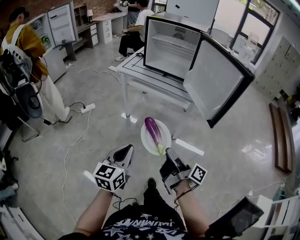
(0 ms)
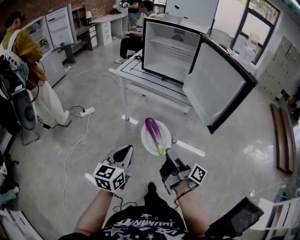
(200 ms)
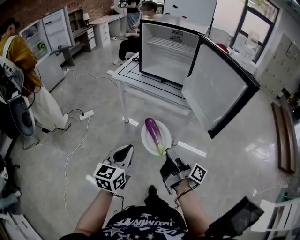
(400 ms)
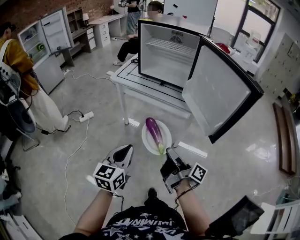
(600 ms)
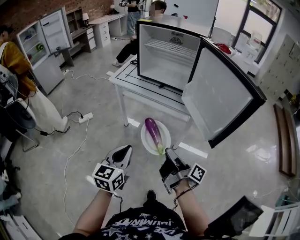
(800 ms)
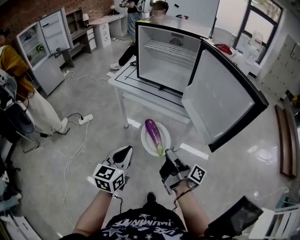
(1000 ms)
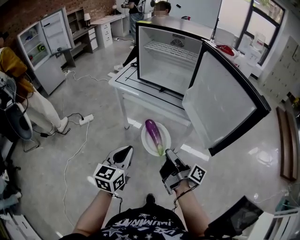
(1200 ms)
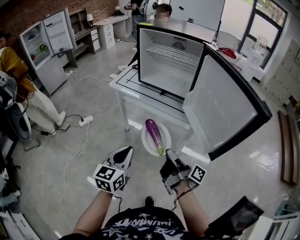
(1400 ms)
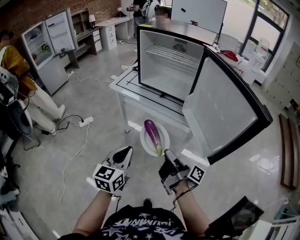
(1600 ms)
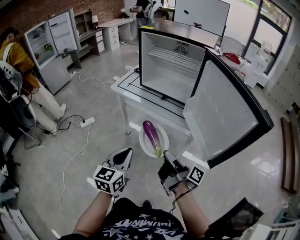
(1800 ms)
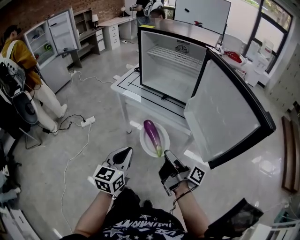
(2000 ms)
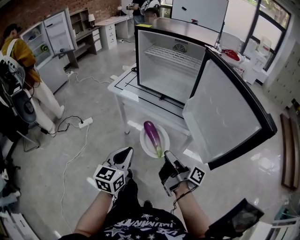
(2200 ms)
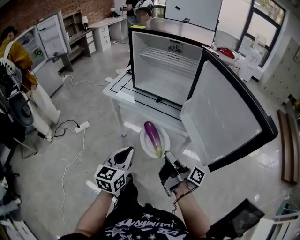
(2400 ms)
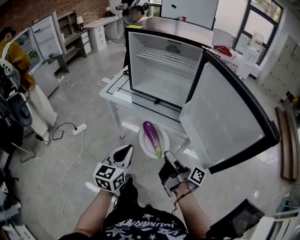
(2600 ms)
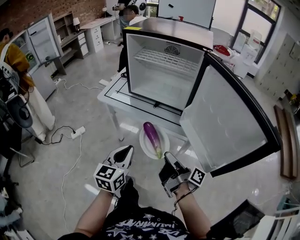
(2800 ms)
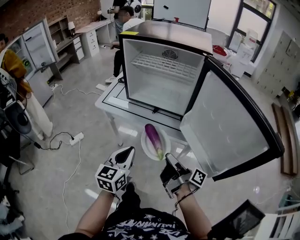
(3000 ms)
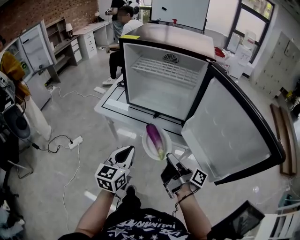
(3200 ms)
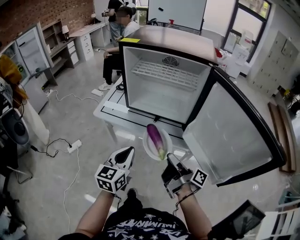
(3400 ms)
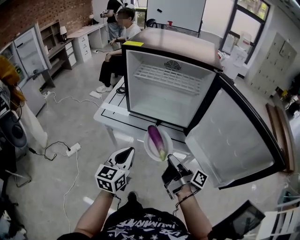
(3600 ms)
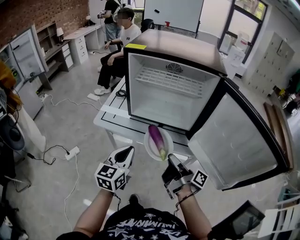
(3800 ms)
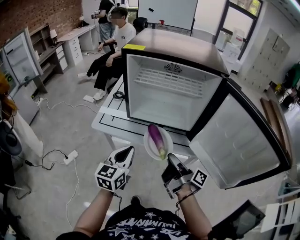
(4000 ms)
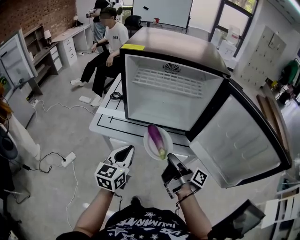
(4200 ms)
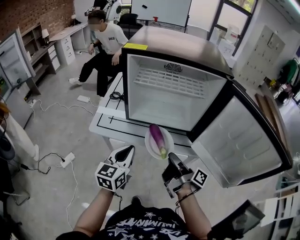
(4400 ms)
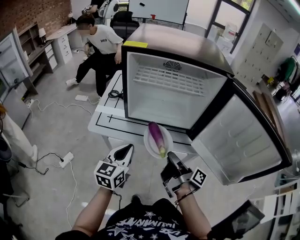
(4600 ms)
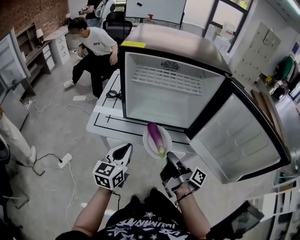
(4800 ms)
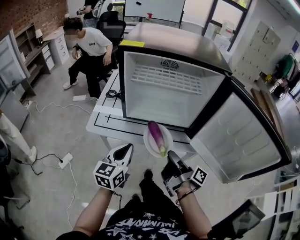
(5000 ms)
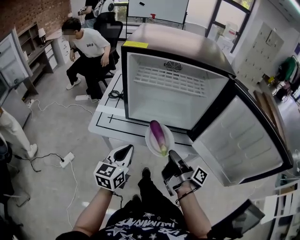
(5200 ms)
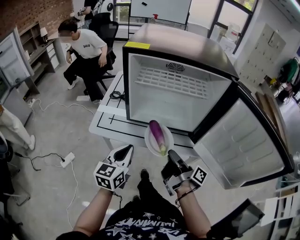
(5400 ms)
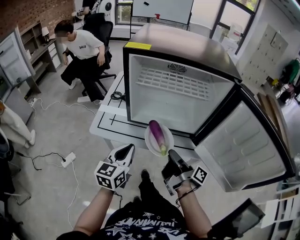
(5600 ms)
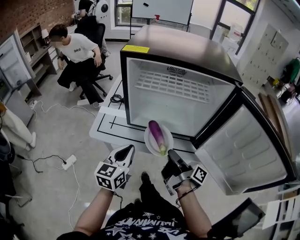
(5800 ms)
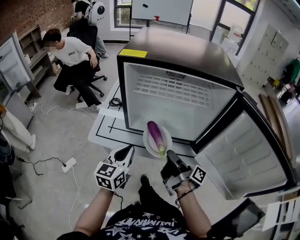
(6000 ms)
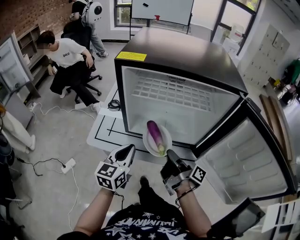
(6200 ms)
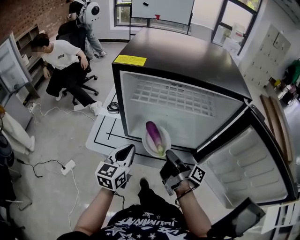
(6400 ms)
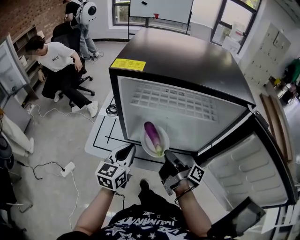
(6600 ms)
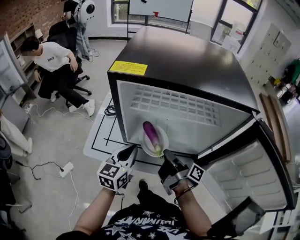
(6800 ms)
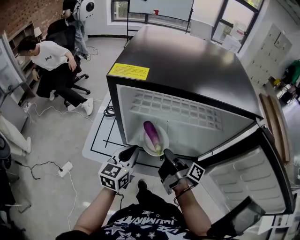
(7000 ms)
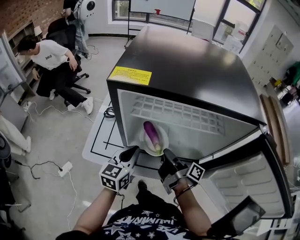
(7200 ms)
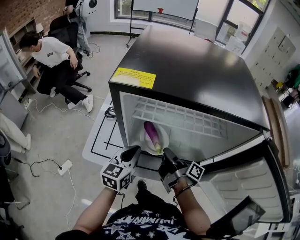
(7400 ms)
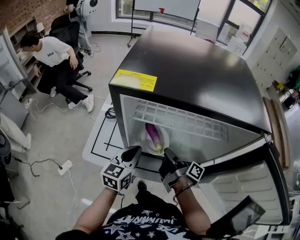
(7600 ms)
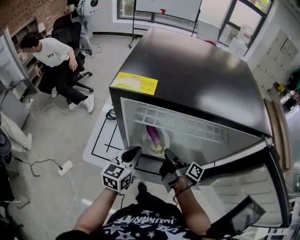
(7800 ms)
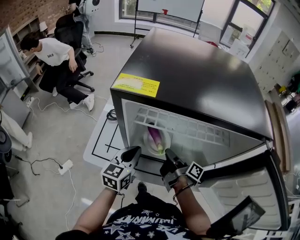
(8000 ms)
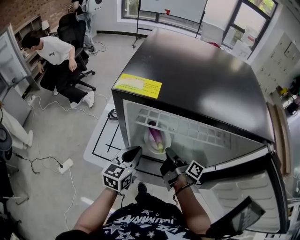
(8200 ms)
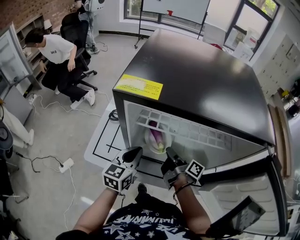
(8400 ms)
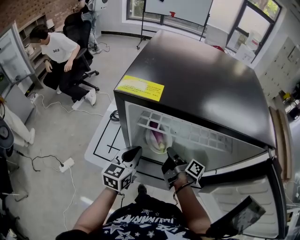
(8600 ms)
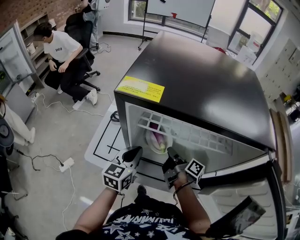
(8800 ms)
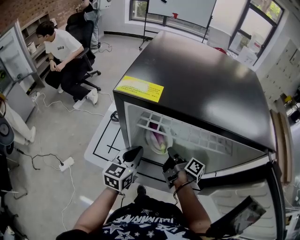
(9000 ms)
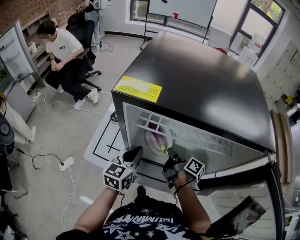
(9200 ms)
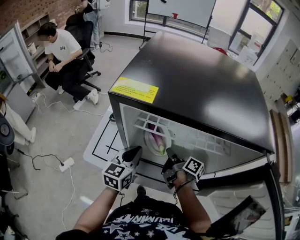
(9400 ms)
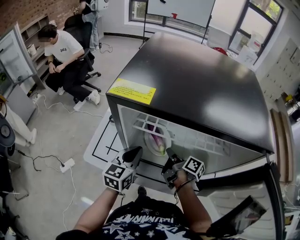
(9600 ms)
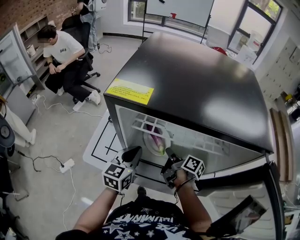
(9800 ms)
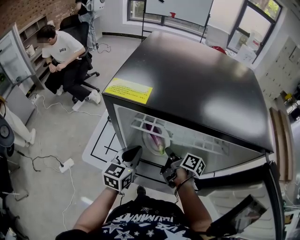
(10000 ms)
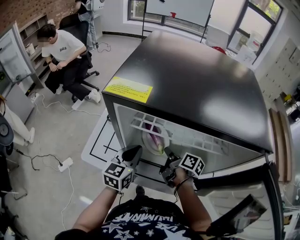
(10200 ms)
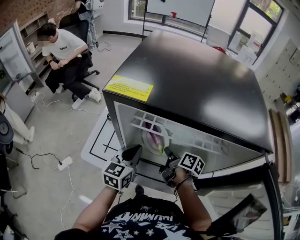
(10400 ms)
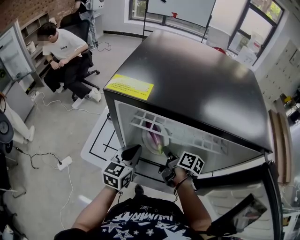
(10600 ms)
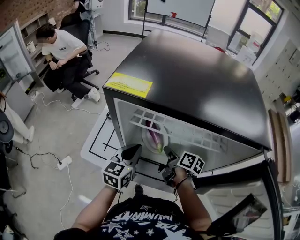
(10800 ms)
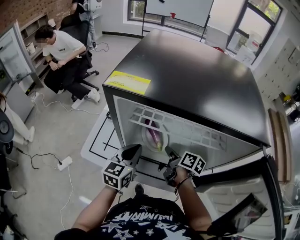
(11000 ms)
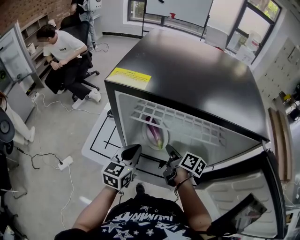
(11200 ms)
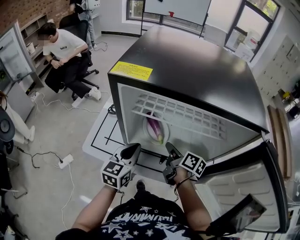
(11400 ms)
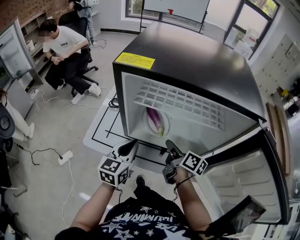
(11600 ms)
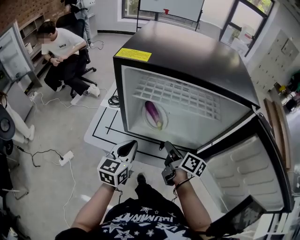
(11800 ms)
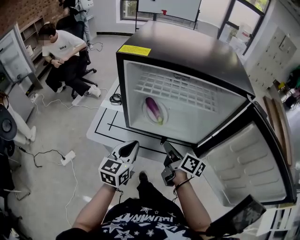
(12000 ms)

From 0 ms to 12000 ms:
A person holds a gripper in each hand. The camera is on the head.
From 0 ms to 1600 ms: The left gripper ends up approximately 25 cm from where it was.
From 1600 ms to 3000 ms: The left gripper ends up roughly 15 cm from where it was.
From 3000 ms to 4400 ms: The left gripper shifts by some 20 cm.
From 4400 ms to 6000 ms: The left gripper ends up some 5 cm from where it was.
From 6000 ms to 7600 ms: The left gripper changes place by about 15 cm.
From 10400 ms to 12000 ms: The left gripper moves approximately 15 cm.

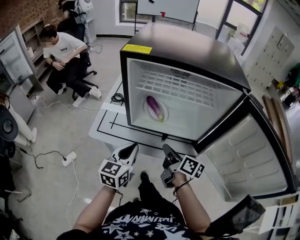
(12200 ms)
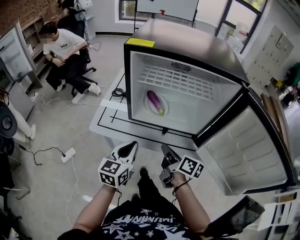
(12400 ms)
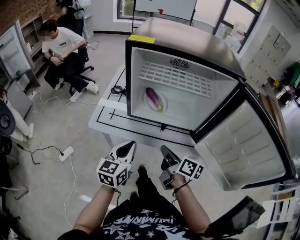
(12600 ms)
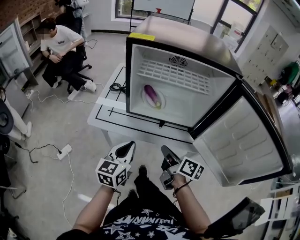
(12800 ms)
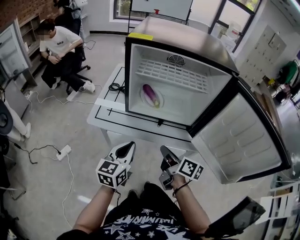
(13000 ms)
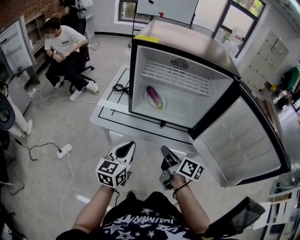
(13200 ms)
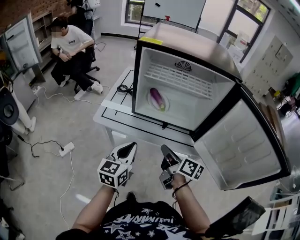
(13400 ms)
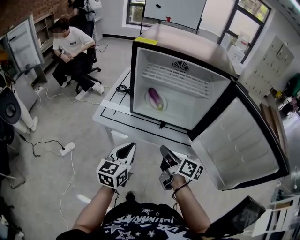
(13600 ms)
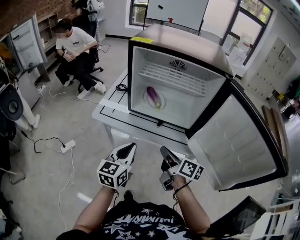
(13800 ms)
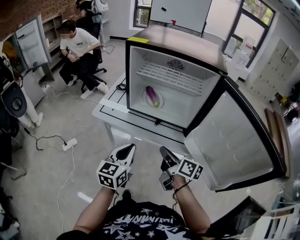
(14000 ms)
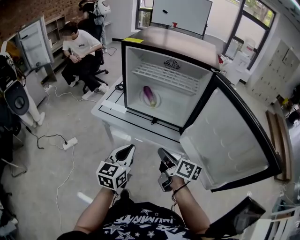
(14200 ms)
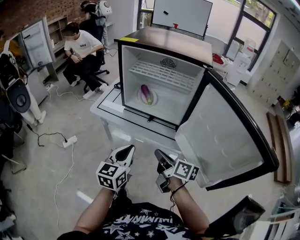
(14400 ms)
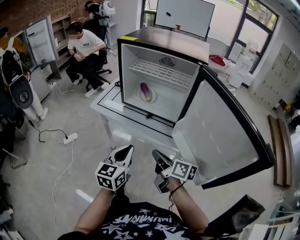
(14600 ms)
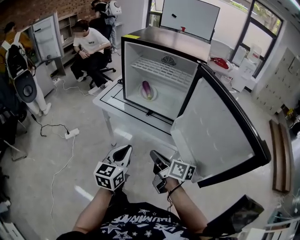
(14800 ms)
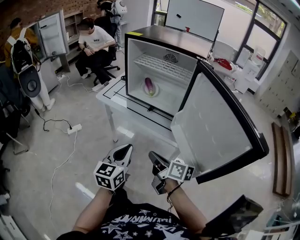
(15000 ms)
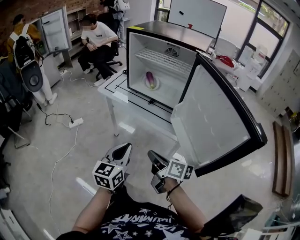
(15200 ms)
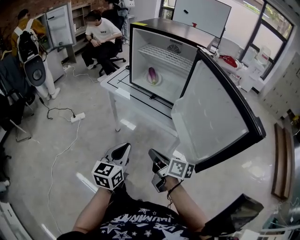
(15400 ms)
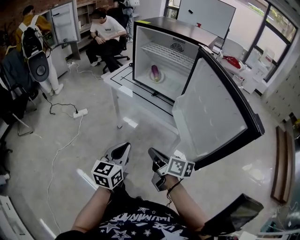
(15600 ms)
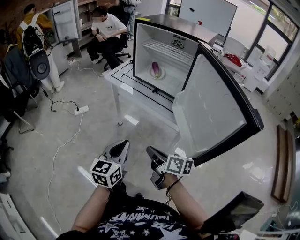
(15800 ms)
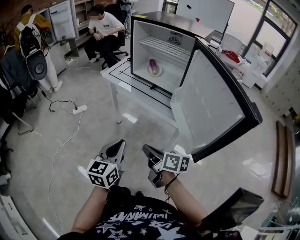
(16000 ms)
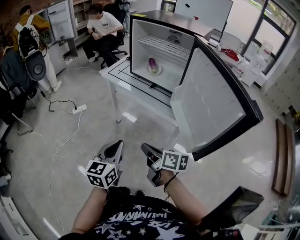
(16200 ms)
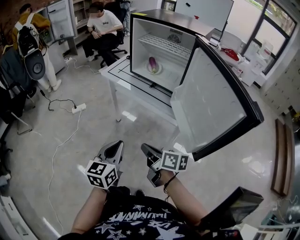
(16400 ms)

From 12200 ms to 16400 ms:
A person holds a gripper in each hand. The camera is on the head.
From 12200 ms to 13600 ms: The left gripper ends up approximately 10 cm from where it was.
From 13600 ms to 15000 ms: The left gripper moves approximately 25 cm.
From 15000 ms to 16400 ms: The left gripper shifts by roughly 15 cm.

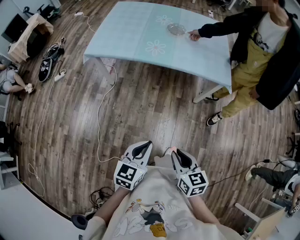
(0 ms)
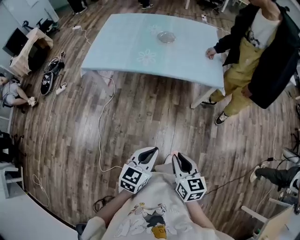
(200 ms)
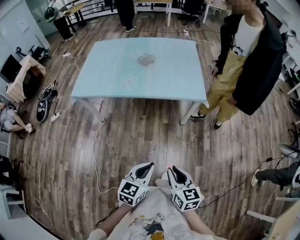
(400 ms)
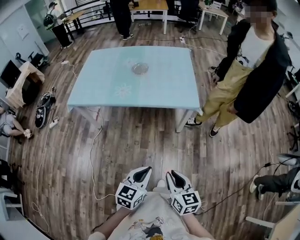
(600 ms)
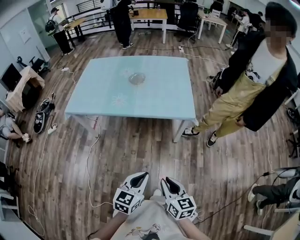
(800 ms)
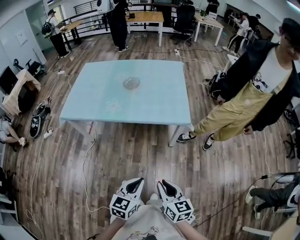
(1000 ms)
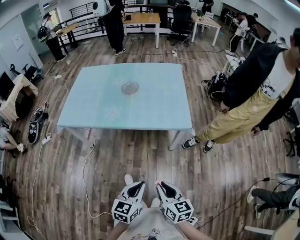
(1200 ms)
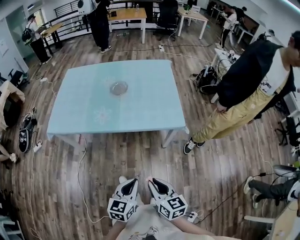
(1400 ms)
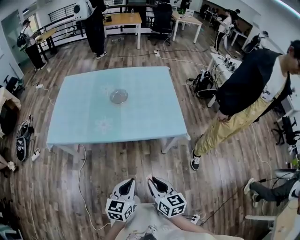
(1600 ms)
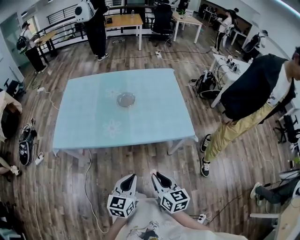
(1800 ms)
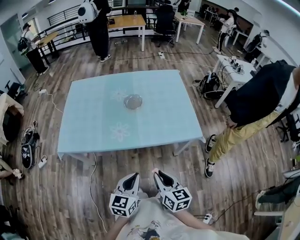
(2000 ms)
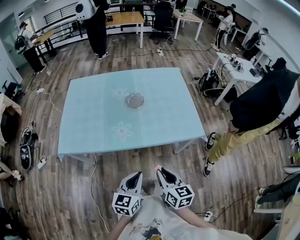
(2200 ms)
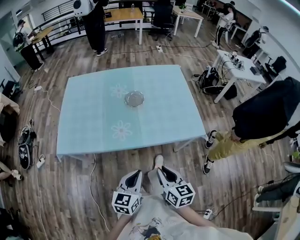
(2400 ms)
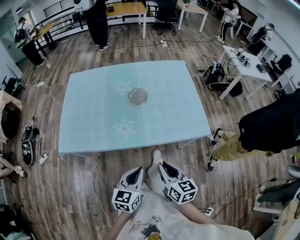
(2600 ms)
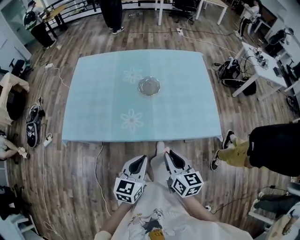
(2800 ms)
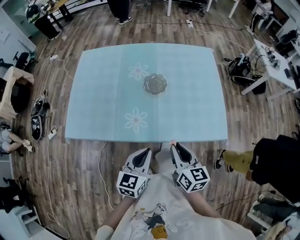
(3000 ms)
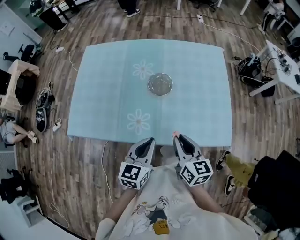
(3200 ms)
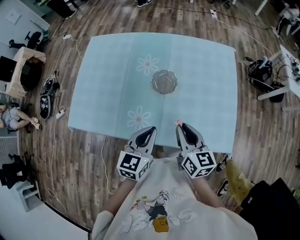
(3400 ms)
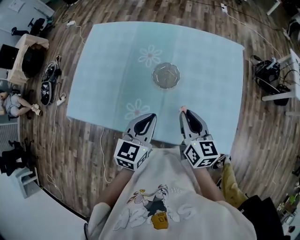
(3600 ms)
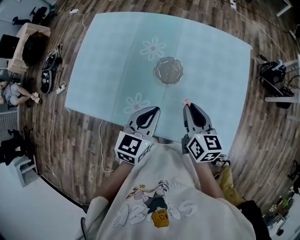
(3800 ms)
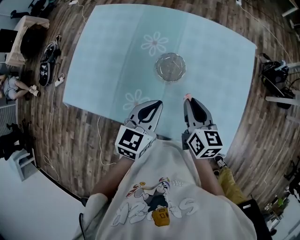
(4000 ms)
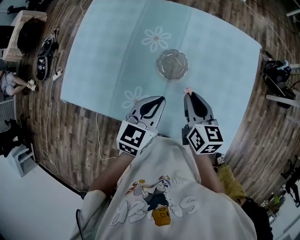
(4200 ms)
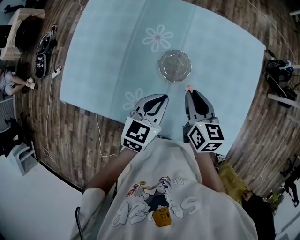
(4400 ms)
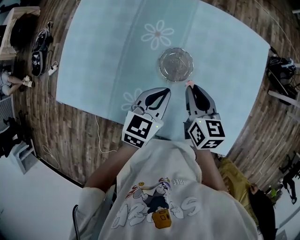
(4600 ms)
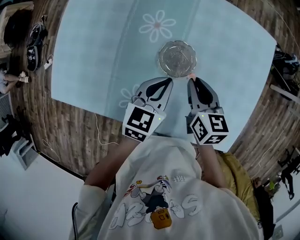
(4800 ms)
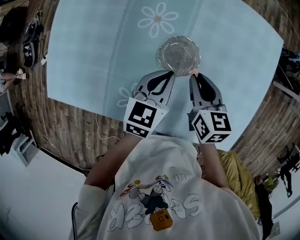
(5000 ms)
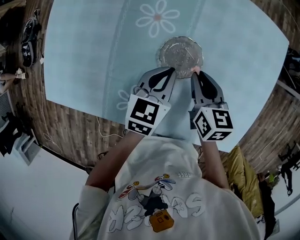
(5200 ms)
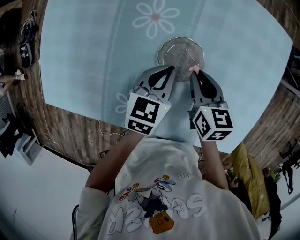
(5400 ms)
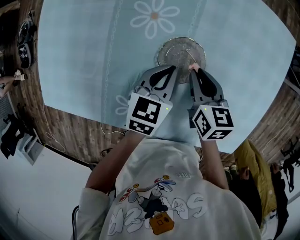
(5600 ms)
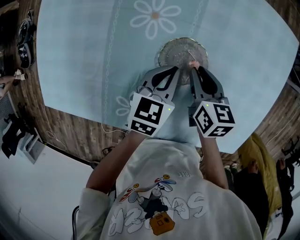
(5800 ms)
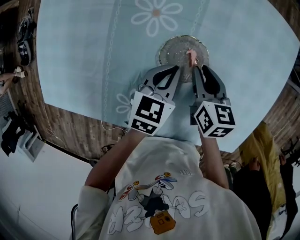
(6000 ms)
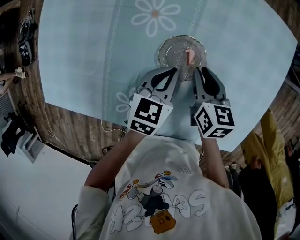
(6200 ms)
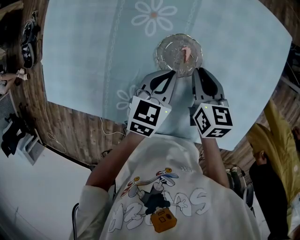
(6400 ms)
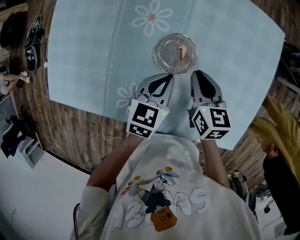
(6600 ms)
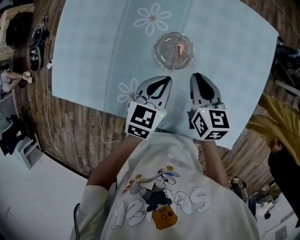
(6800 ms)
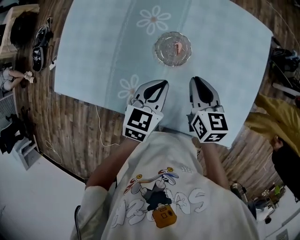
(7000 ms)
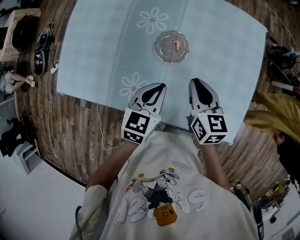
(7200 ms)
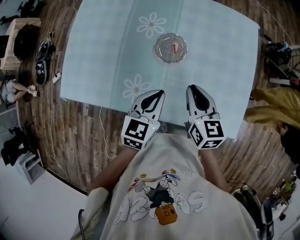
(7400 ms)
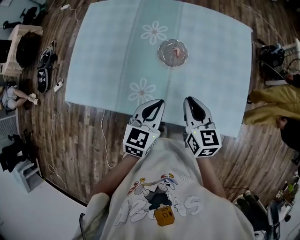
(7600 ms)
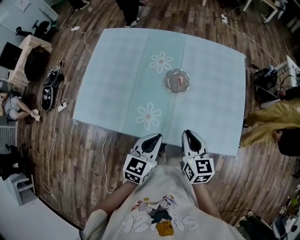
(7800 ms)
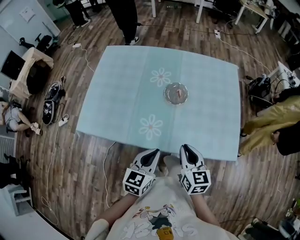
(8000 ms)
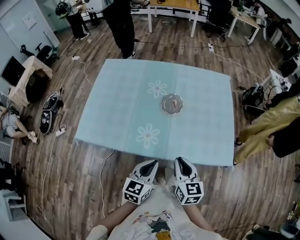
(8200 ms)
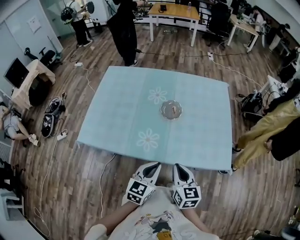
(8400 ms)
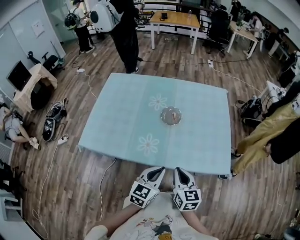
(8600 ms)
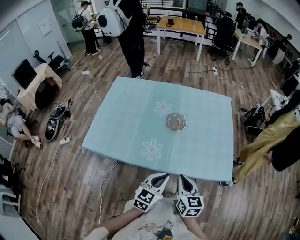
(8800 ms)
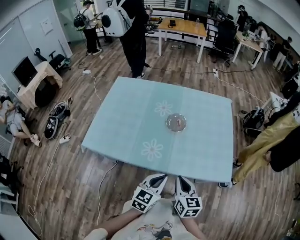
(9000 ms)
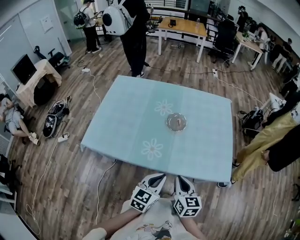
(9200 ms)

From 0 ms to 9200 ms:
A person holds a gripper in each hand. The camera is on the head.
From 0 ms to 1600 ms: Both grippers travel together forward and to the right, roughly 30 cm.
From 1600 ms to 3000 ms: Both grippers travel together forward and to the left, some 30 cm.
From 3000 ms to 4600 ms: Both grippers travel together forward, some 35 cm.
From 4600 ms to 6200 ms: Both grippers travel together downward and forward, approximately 15 cm.
From 6200 ms to 7600 ms: Both grippers travel together backward and upward, approximately 30 cm.
From 7600 ms to 9200 ms: Both grippers travel together backward, roughly 20 cm.
